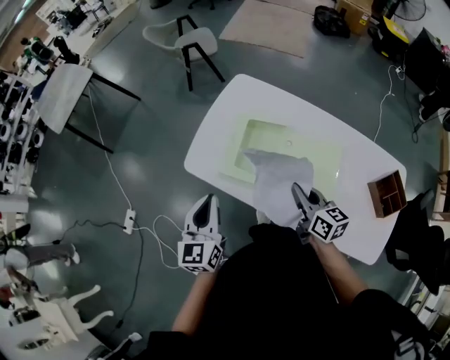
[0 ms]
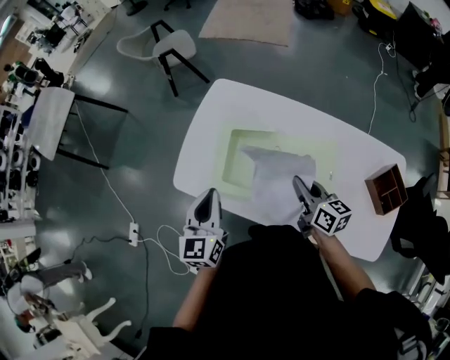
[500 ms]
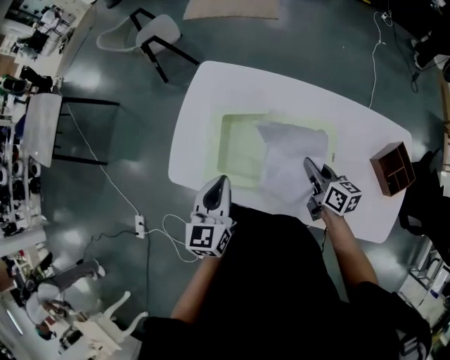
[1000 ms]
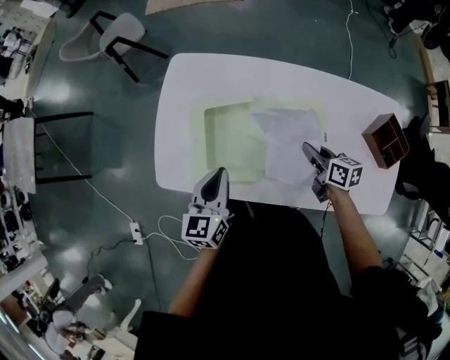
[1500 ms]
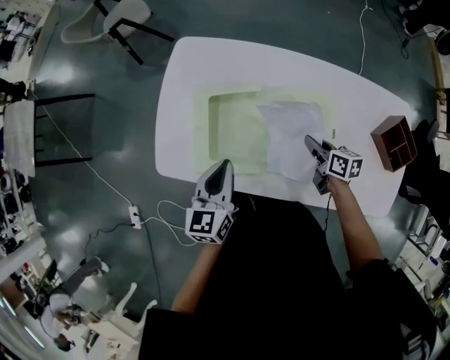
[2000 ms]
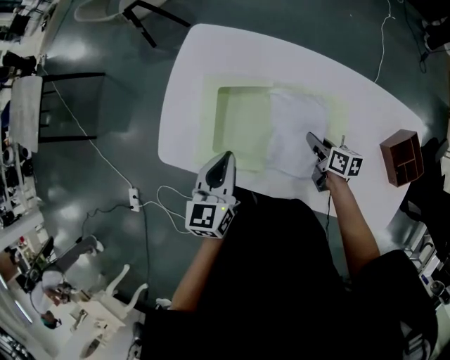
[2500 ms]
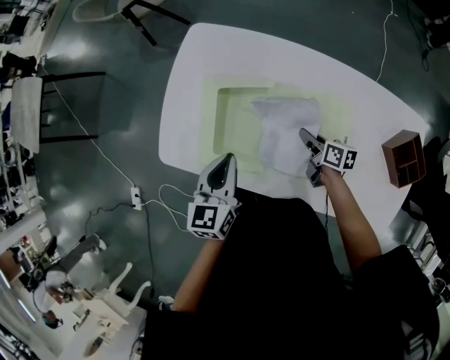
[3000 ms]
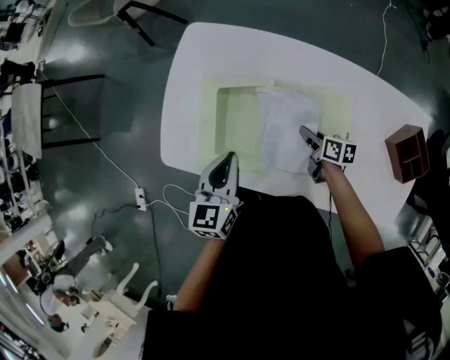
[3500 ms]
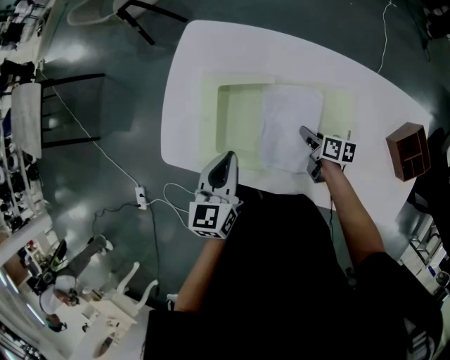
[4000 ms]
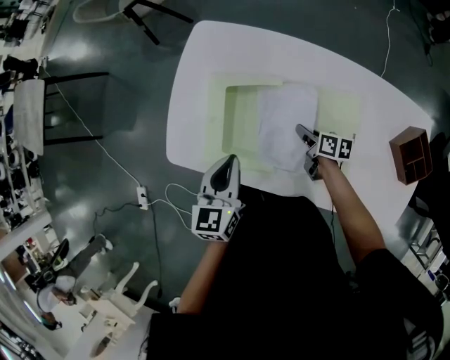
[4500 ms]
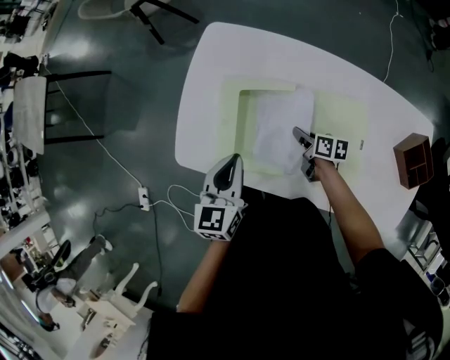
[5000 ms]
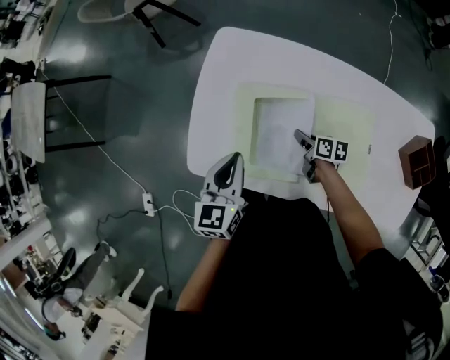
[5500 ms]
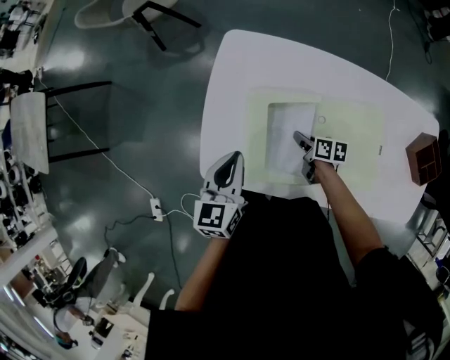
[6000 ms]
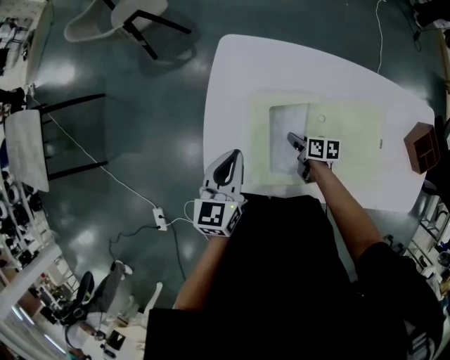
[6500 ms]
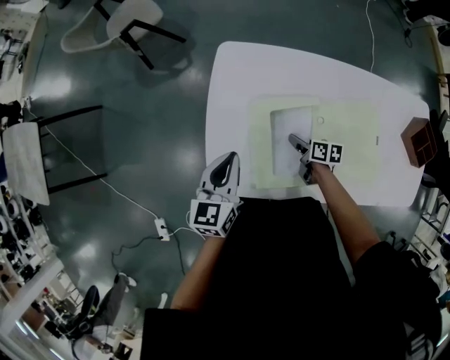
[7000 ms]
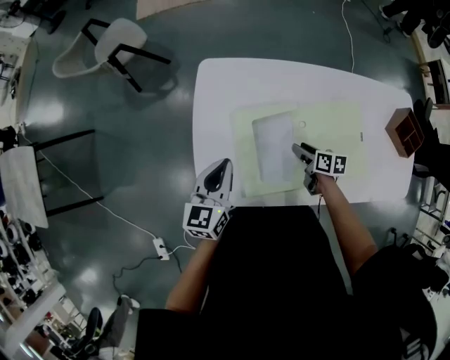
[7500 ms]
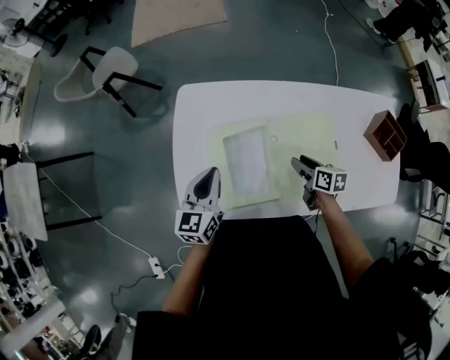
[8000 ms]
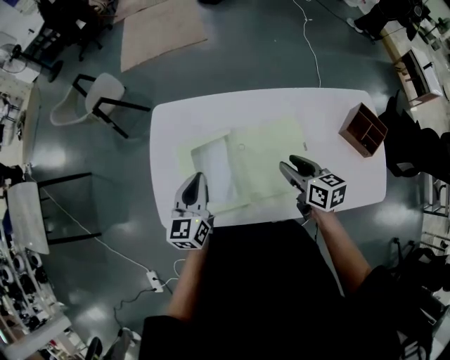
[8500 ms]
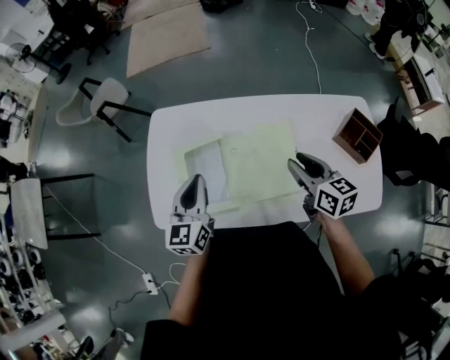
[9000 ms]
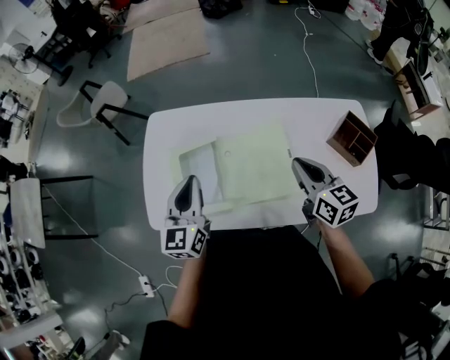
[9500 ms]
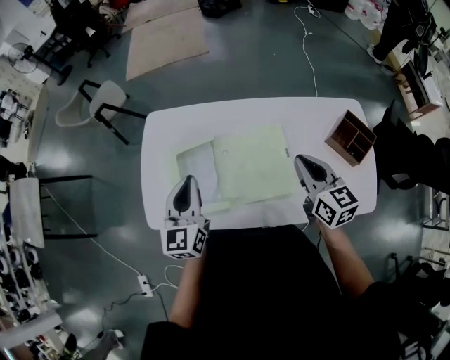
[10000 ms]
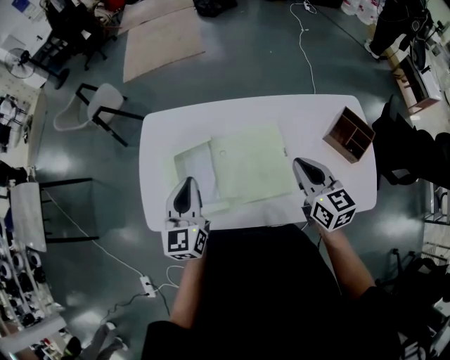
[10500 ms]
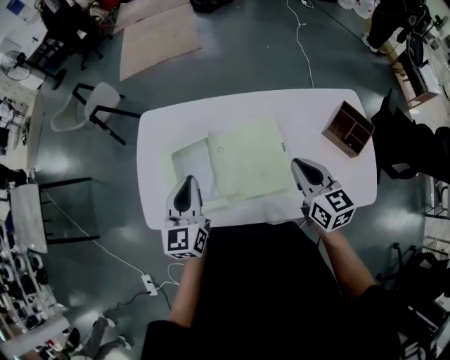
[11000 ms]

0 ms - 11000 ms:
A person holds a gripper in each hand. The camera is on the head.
0 ms - 2000 ms: The left gripper goes about 20 cm forward, to the right and downward, and rotates some 30 degrees; the right gripper heads downward, to the right and forward, covering some 25 cm, and rotates some 30 degrees.
2000 ms - 3500 ms: The right gripper heads downward, covering about 5 cm.
3500 ms - 5500 ms: The grippers both shift to the left and forward by approximately 10 cm.
5500 ms - 7500 ms: The left gripper goes roughly 10 cm forward and to the left; the right gripper opens up.
7500 ms - 9000 ms: The right gripper heads upward and to the right, covering roughly 35 cm, and changes its angle by approximately 30 degrees; the left gripper shifts approximately 20 cm to the right and upward.
9000 ms - 11000 ms: The right gripper moves roughly 5 cm, and closes.

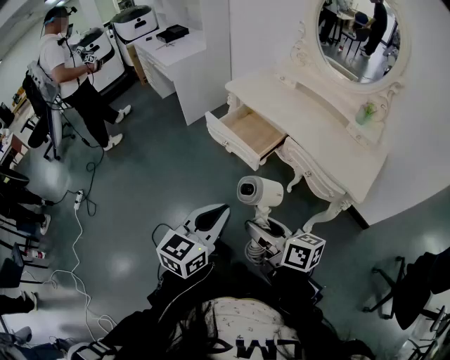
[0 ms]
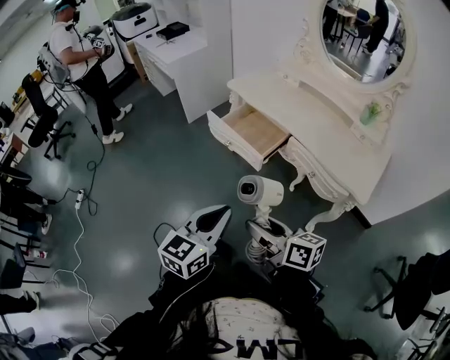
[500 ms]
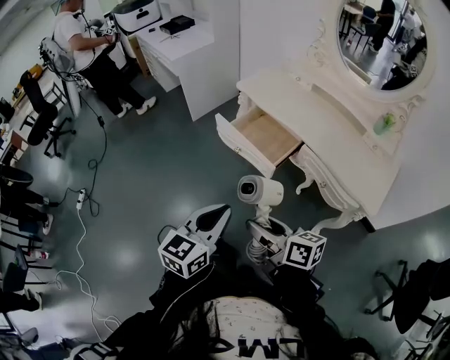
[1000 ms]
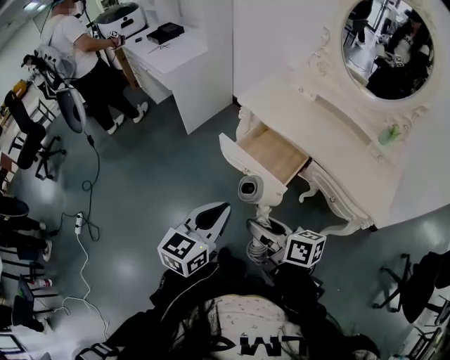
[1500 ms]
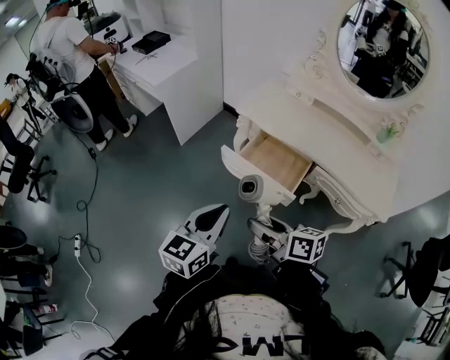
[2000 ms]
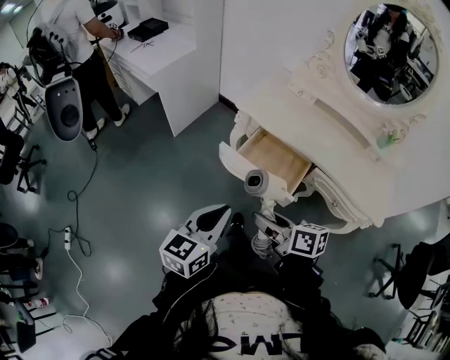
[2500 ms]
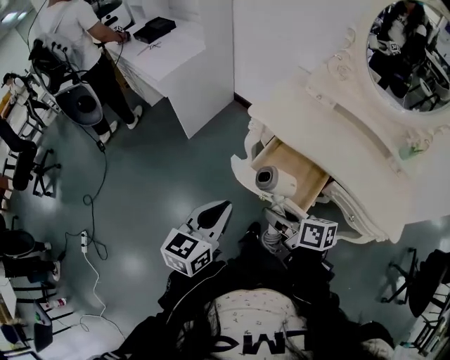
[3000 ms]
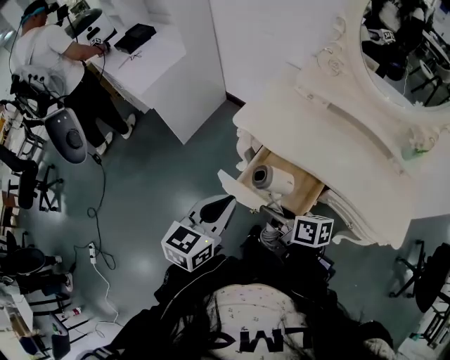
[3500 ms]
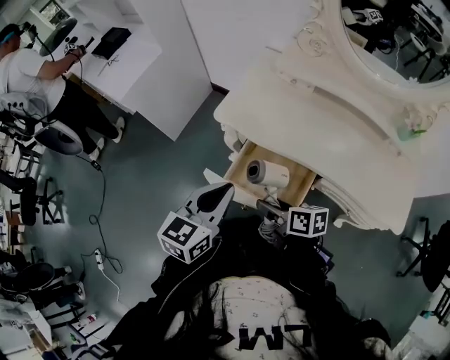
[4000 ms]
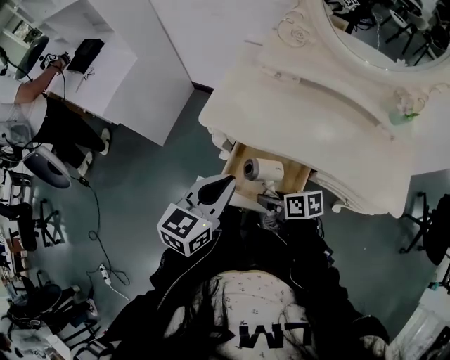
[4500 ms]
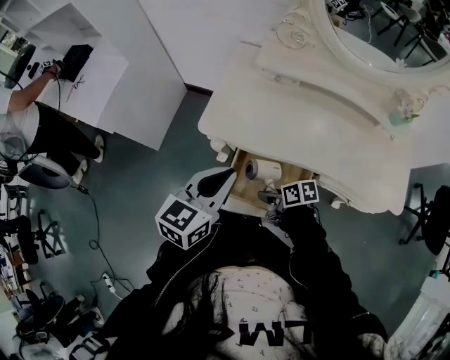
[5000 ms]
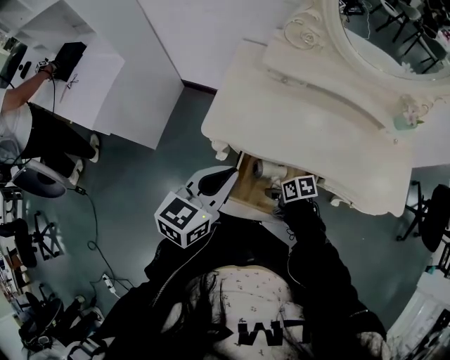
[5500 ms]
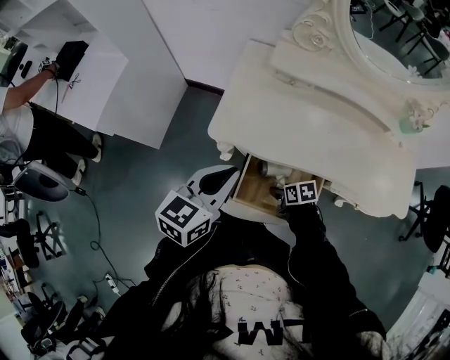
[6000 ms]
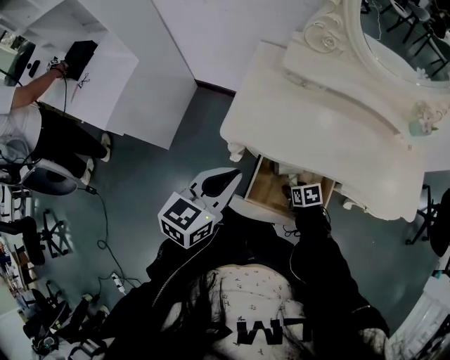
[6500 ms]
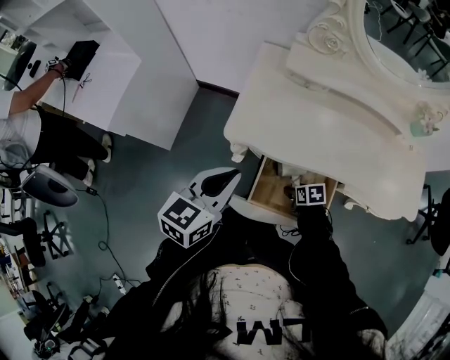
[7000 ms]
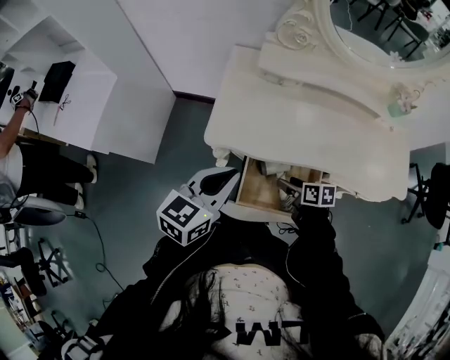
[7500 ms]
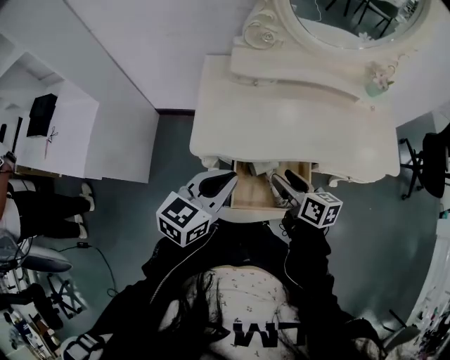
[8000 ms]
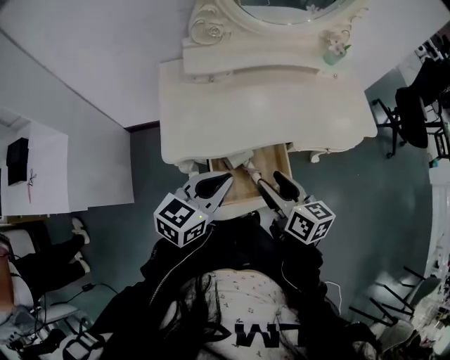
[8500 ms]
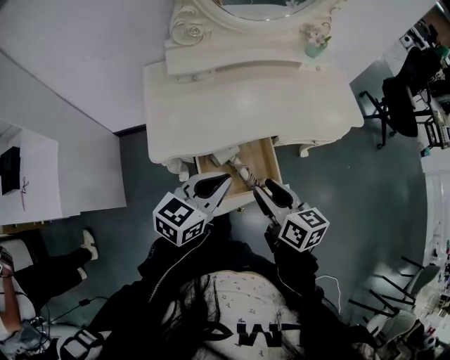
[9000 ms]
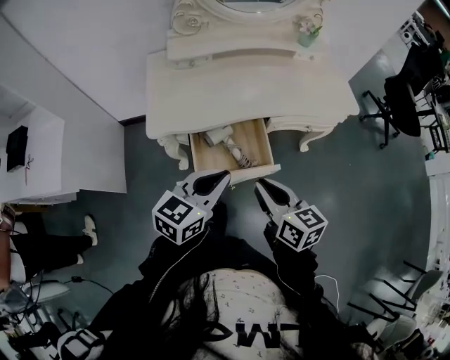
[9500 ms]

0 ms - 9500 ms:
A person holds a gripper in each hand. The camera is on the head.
0 ms - 2000 ms: Both grippers travel together forward and to the left, approximately 30 cm.
2000 ms - 4000 ms: The left gripper is displaced forward and to the right by roughly 25 cm. Meanwhile the right gripper moves forward, downward and to the right, approximately 25 cm.
4000 ms - 5500 ms: The left gripper goes approximately 15 cm forward; the right gripper is displaced downward and forward by roughly 20 cm, and swivels approximately 30 degrees.
5500 ms - 7500 ms: The right gripper moves upward, about 5 cm, and turns by about 30 degrees.
7500 ms - 9500 ms: The left gripper shifts by roughly 15 cm, and swivels some 20 degrees. The right gripper is displaced upward by approximately 20 cm, changes its angle by roughly 40 degrees, and closes.

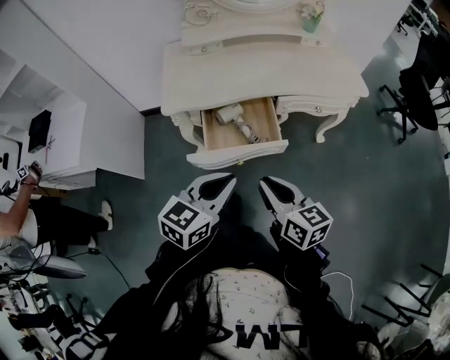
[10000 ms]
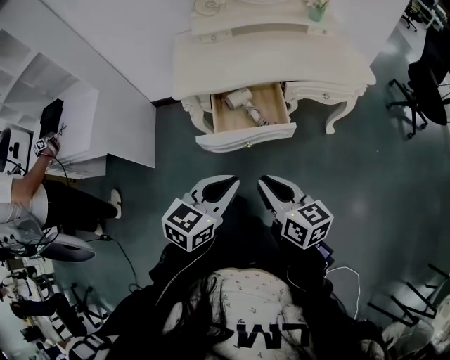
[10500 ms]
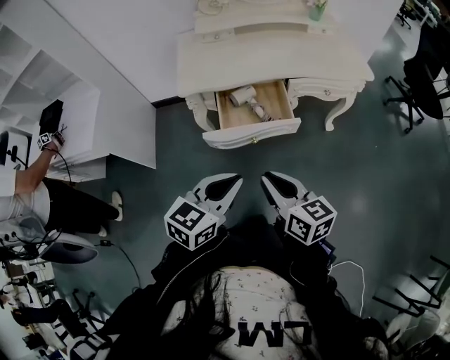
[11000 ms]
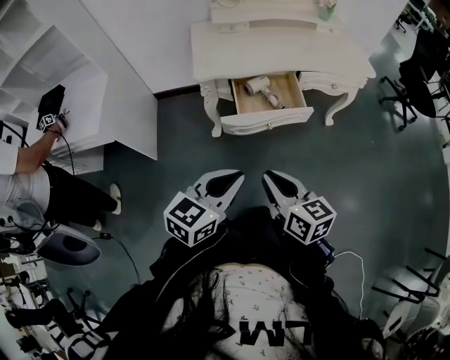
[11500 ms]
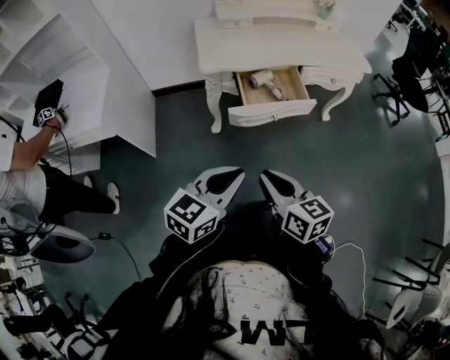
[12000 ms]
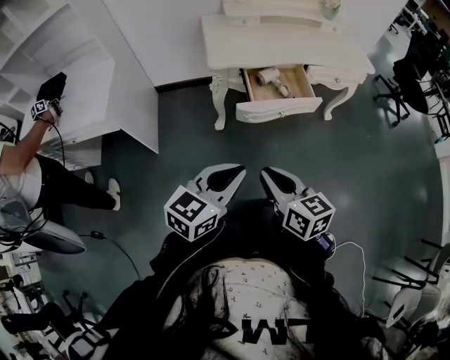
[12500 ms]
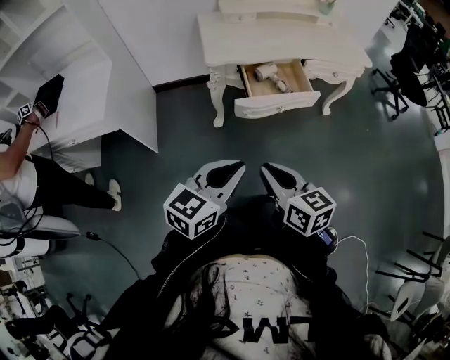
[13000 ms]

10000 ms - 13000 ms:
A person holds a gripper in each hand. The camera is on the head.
10000 ms - 11500 ms: Both grippers travel together backward and to the left, some 20 cm.
11500 ms - 13000 ms: The grippers both shift to the left and backward by about 10 cm.

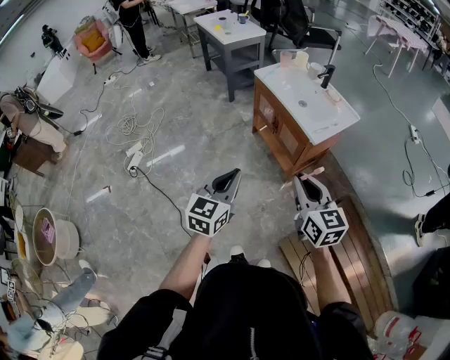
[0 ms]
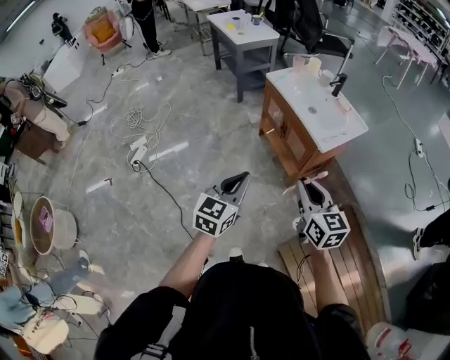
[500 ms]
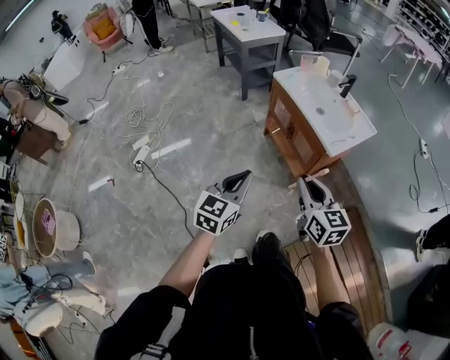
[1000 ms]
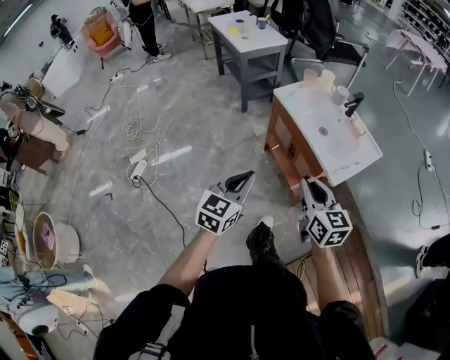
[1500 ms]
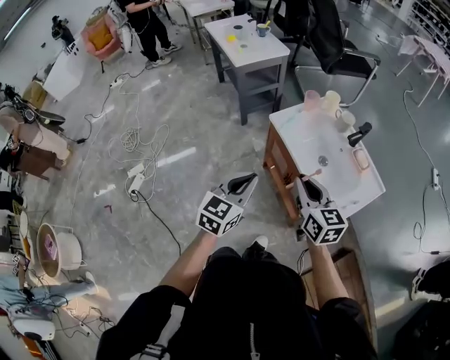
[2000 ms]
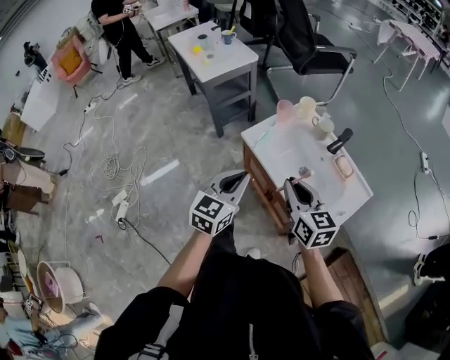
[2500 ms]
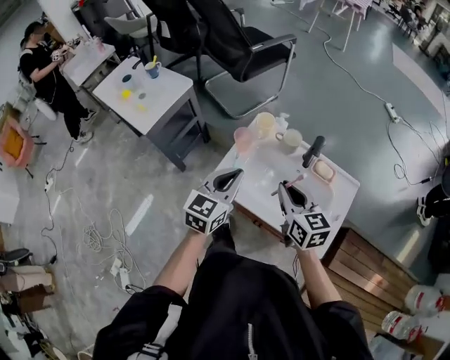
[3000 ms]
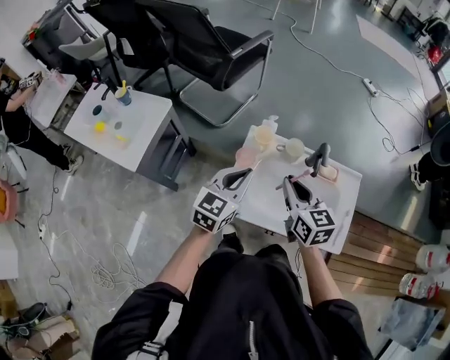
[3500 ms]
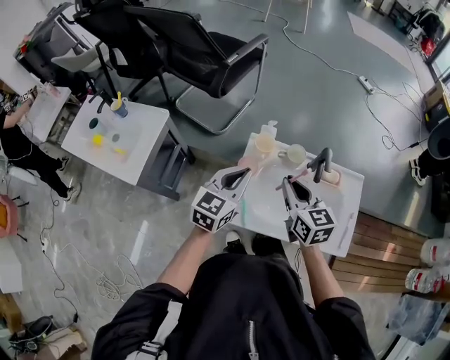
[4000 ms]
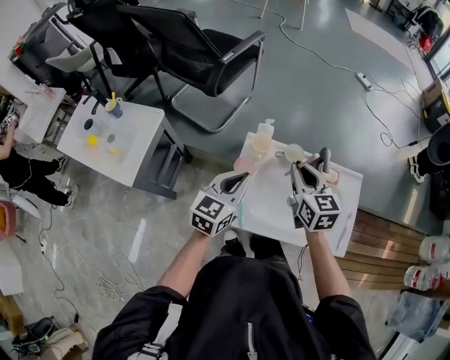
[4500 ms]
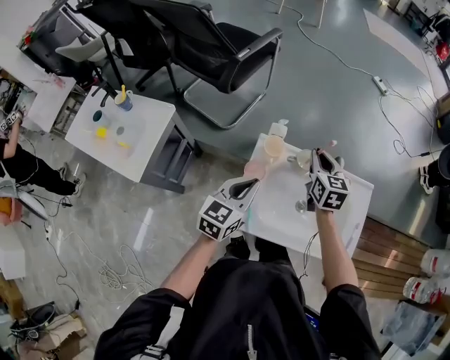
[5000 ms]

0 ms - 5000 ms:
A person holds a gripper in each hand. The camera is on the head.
0 ms - 2500 ms: The two grippers travel together, forward, about 50 cm.
2500 ms - 5000 ms: The left gripper shifts by roughly 35 cm, and turns by about 40 degrees, while the right gripper shifts by approximately 40 cm, and turns by some 50 degrees.
